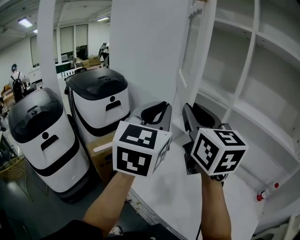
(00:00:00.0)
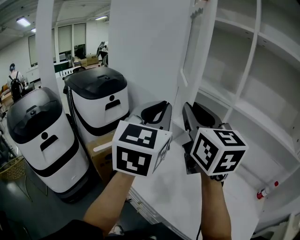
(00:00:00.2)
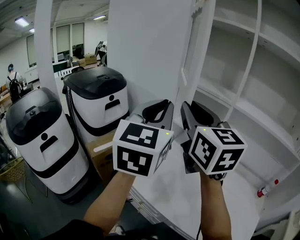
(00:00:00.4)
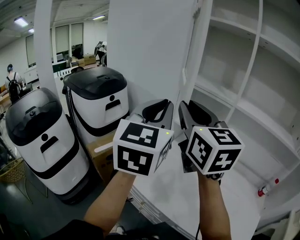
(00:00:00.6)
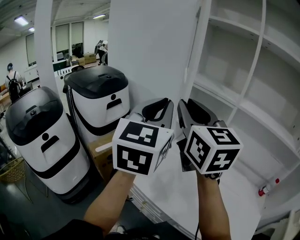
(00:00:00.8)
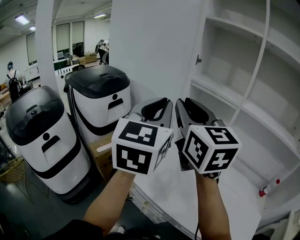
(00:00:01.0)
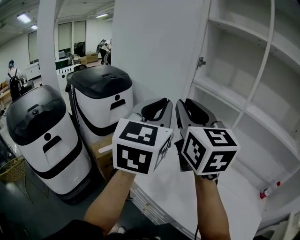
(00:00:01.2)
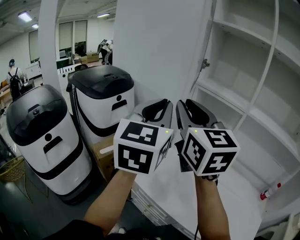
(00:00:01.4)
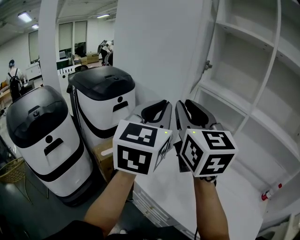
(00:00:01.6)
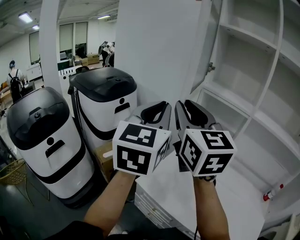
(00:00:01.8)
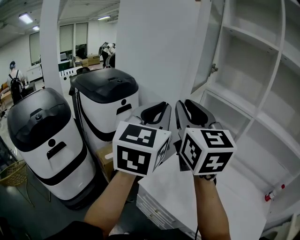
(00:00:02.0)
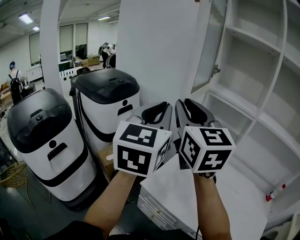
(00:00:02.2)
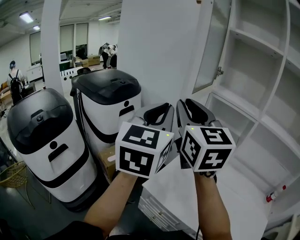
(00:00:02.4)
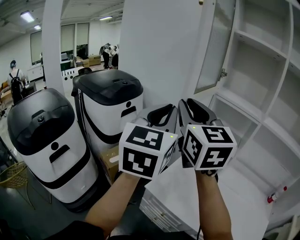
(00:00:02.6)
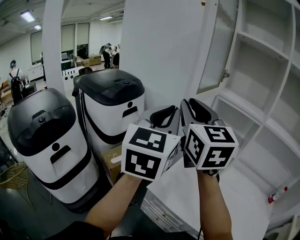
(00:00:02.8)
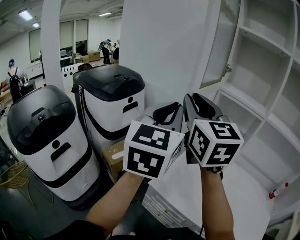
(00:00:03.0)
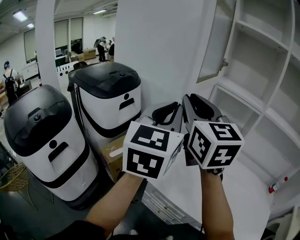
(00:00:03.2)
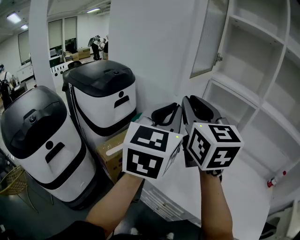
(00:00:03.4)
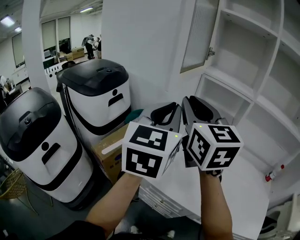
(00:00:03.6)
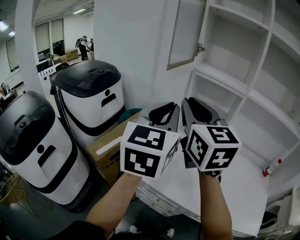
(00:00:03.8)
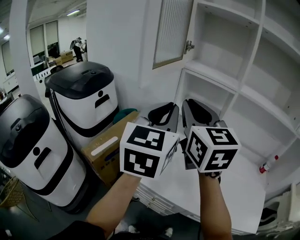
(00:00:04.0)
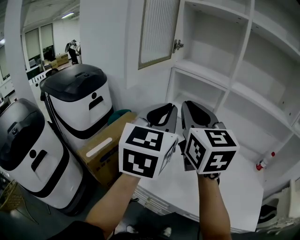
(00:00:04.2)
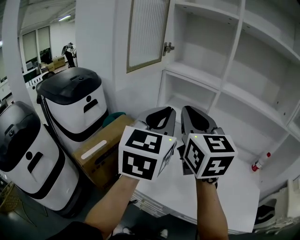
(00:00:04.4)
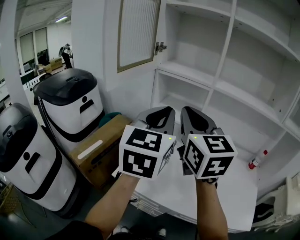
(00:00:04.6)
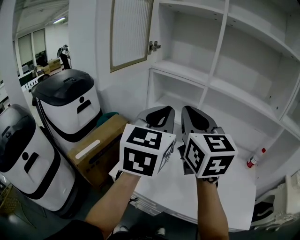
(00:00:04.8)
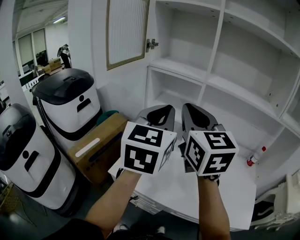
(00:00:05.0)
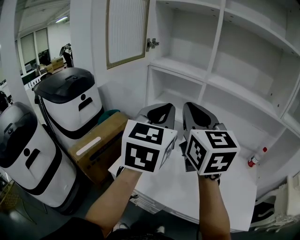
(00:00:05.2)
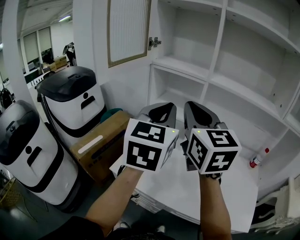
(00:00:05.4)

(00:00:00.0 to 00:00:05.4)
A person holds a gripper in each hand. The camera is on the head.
00:00:00.0 - 00:00:01.4: The grippers both shift to the left by about 10 cm.
00:00:01.4 - 00:00:02.8: The right gripper travels to the left and forward by approximately 10 cm. Meanwhile the left gripper is displaced to the left by approximately 10 cm.
00:00:02.8 - 00:00:04.0: Both grippers travel together to the right, some 15 cm.
00:00:04.0 - 00:00:05.4: Both grippers move to the right, approximately 15 cm.

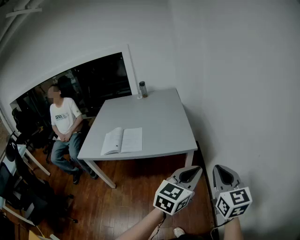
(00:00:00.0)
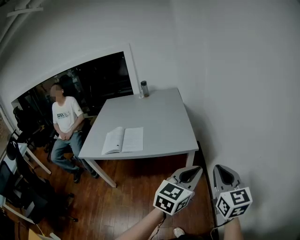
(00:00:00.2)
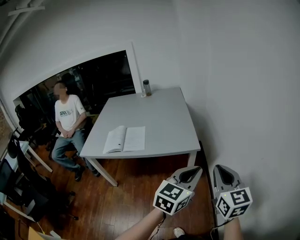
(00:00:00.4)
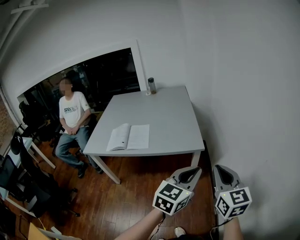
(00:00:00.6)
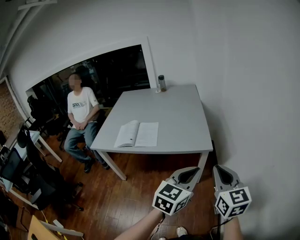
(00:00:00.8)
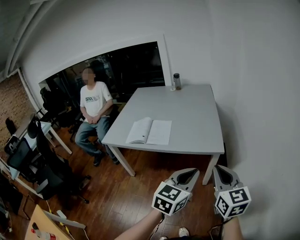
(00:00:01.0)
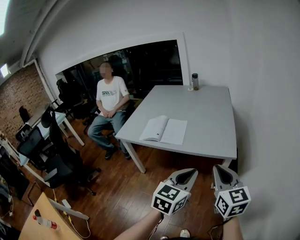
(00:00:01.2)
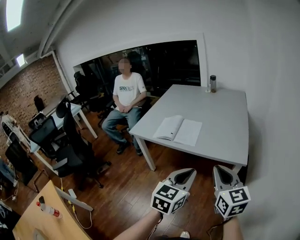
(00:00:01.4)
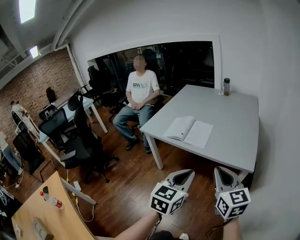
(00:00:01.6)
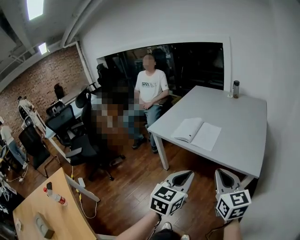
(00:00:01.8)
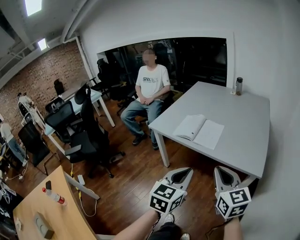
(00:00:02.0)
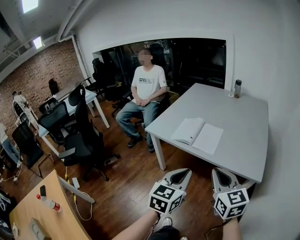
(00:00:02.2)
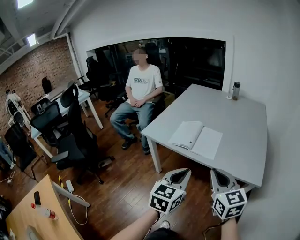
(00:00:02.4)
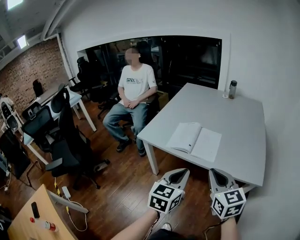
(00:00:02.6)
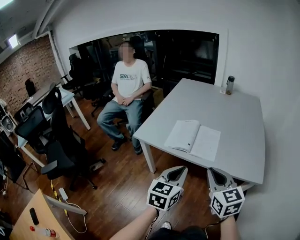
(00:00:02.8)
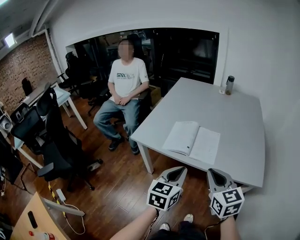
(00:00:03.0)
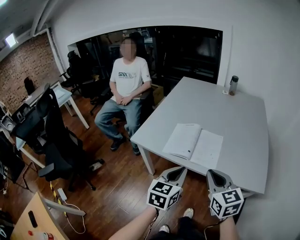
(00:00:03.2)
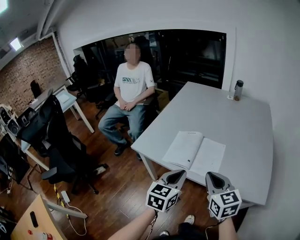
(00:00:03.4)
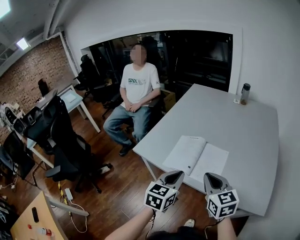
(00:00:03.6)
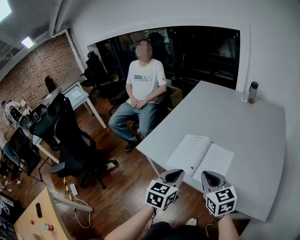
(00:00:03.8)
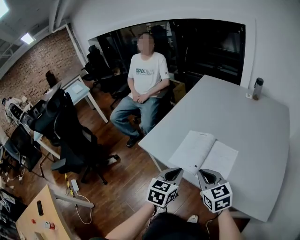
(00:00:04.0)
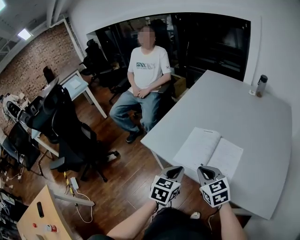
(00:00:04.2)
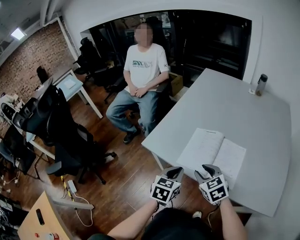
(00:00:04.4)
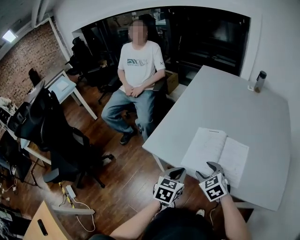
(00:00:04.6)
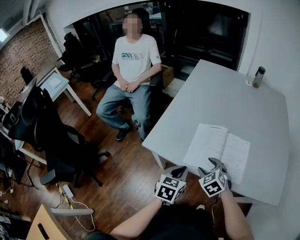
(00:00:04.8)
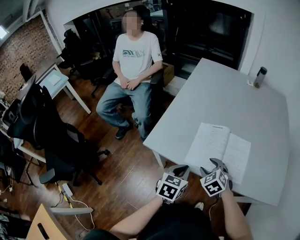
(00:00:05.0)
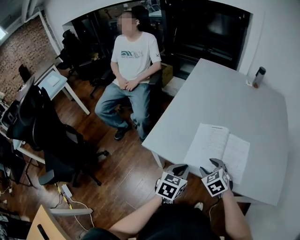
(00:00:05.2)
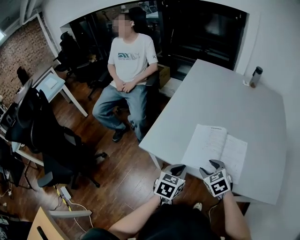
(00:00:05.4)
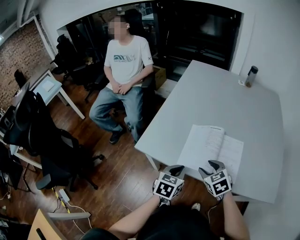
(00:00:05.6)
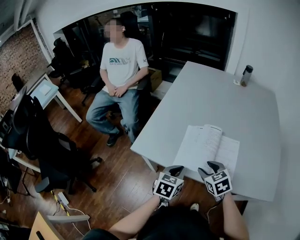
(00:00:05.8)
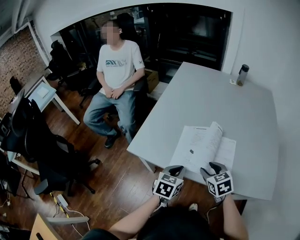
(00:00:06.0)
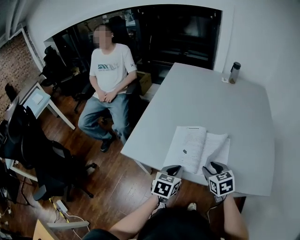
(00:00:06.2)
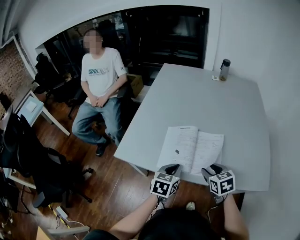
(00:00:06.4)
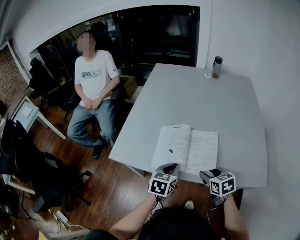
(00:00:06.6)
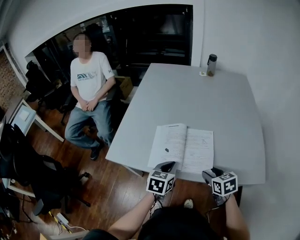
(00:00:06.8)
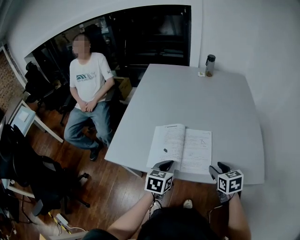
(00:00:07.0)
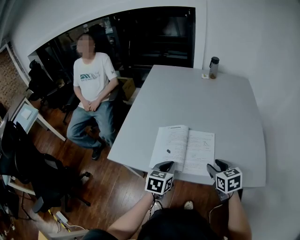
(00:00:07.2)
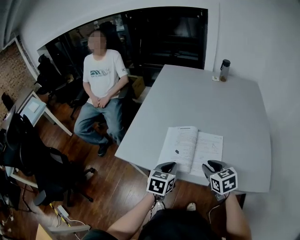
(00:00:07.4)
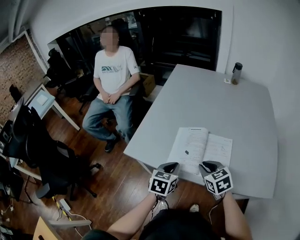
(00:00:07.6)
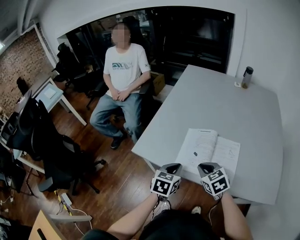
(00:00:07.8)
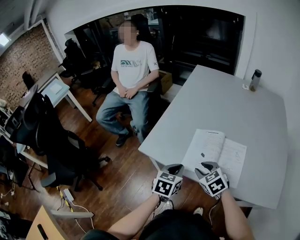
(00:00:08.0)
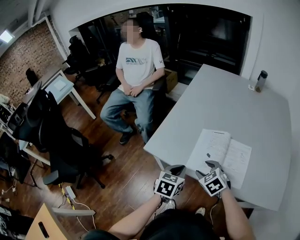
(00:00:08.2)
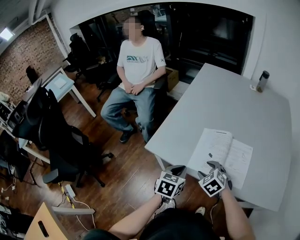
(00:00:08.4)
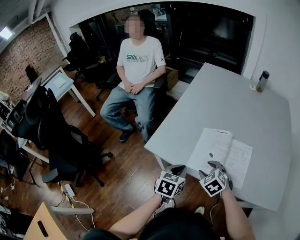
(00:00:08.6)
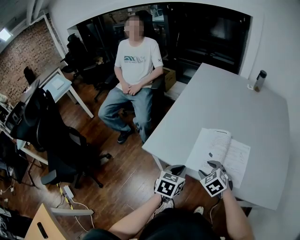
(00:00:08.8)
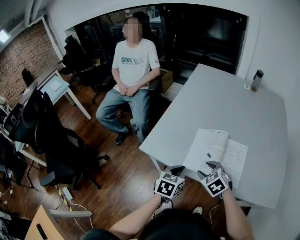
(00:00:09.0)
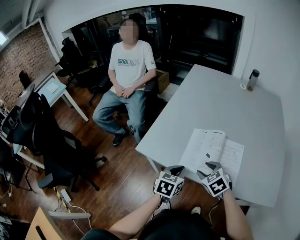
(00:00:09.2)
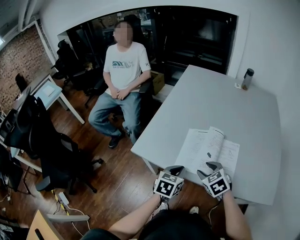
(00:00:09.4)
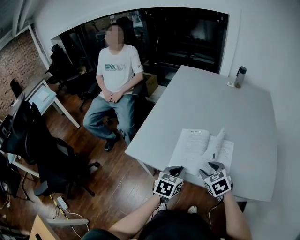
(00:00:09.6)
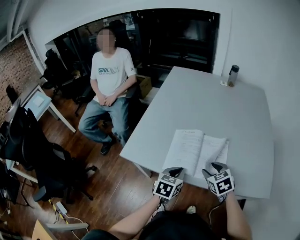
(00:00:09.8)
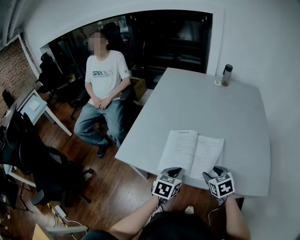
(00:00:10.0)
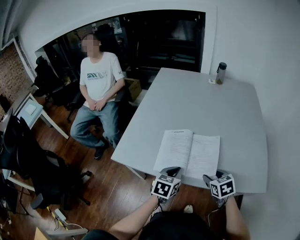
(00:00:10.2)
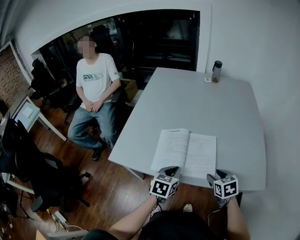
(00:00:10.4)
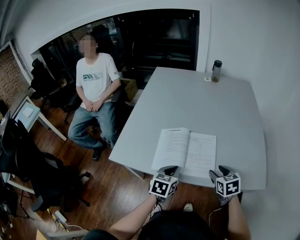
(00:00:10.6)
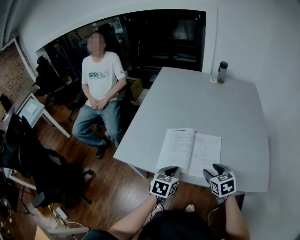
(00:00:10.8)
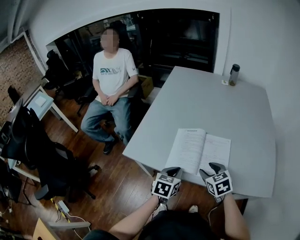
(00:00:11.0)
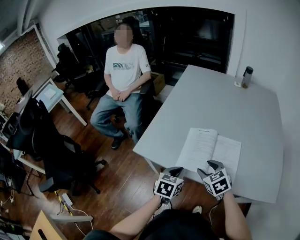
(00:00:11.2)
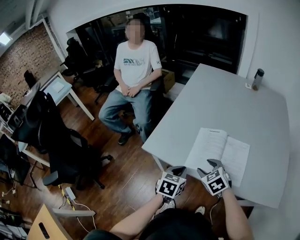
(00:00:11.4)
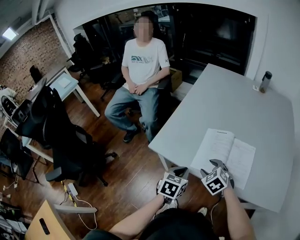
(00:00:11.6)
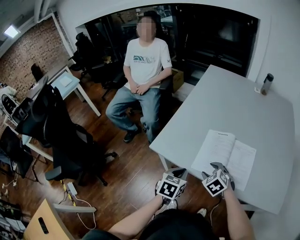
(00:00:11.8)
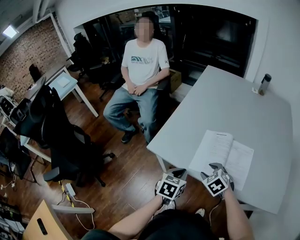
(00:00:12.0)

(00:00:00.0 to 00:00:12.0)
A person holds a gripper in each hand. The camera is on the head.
00:00:00.0 - 00:00:01.6: The left gripper ends up some 25 cm from where it was, and swivels about 40 degrees; the right gripper changes place by about 20 cm, and swivels approximately 40 degrees.
00:00:01.6 - 00:00:03.0: Both grippers move forward and to the left, some 25 cm.
00:00:03.0 - 00:00:04.4: The two grippers go roughly 25 cm forward, downward and to the left. The right gripper rotates about 30 degrees, and opens.
00:00:04.4 - 00:00:06.0: The left gripper moves approximately 5 cm; the right gripper travels to the right by approximately 5 cm.
00:00:06.0 - 00:00:07.6: The right gripper goes to the right and returns, roughly 15 cm each way, and closes.
00:00:07.6 - 00:00:09.0: The left gripper goes approximately 5 cm to the left. Meanwhile the right gripper is displaced to the left by some 10 cm, swivels some 20 degrees, and opens its fingers.
00:00:09.0 - 00:00:10.4: The left gripper shifts approximately 15 cm to the right, while the right gripper goes some 20 cm to the right, and turns by approximately 40 degrees.
00:00:10.4 - 00:00:12.0: The left gripper travels to the left by approximately 15 cm; the right gripper heads to the left, covering roughly 25 cm, and rotates around the line of its fingers by approximately 40 degrees, counterclockwise from behind.

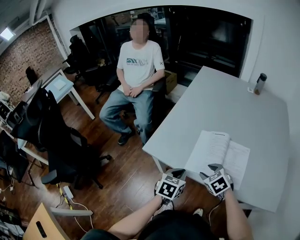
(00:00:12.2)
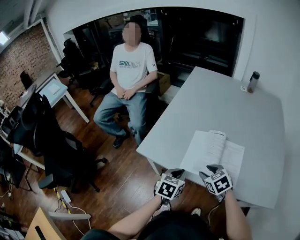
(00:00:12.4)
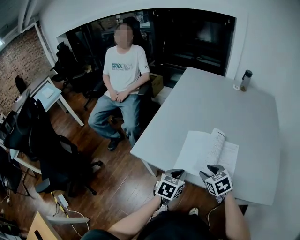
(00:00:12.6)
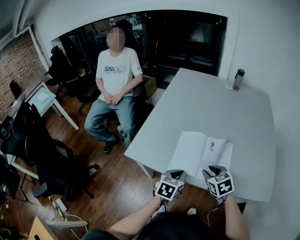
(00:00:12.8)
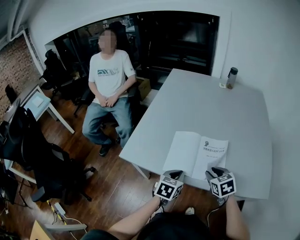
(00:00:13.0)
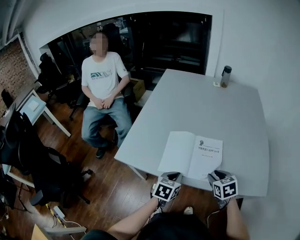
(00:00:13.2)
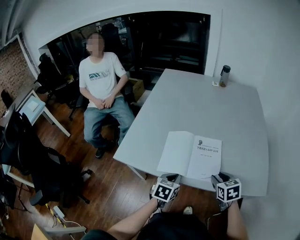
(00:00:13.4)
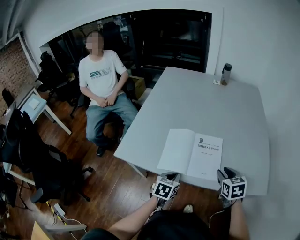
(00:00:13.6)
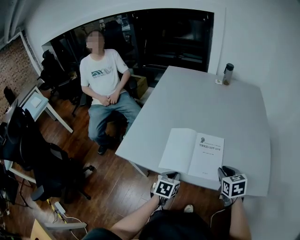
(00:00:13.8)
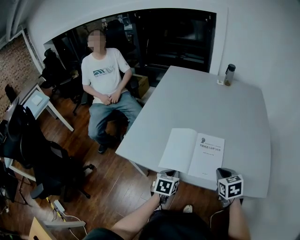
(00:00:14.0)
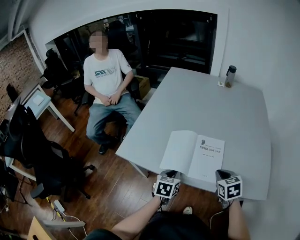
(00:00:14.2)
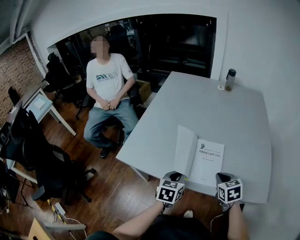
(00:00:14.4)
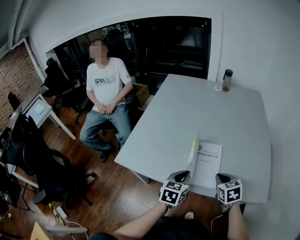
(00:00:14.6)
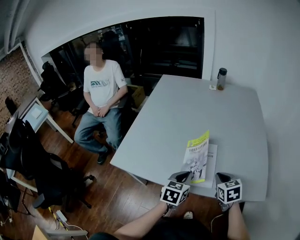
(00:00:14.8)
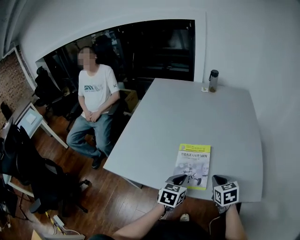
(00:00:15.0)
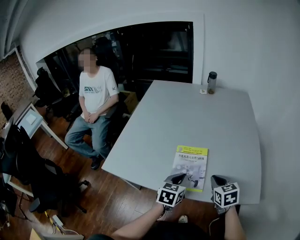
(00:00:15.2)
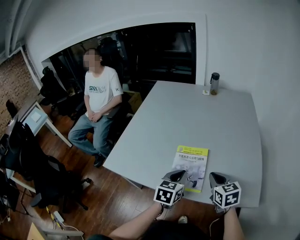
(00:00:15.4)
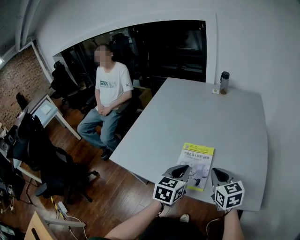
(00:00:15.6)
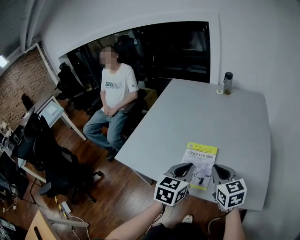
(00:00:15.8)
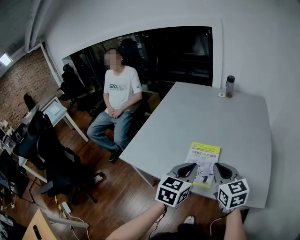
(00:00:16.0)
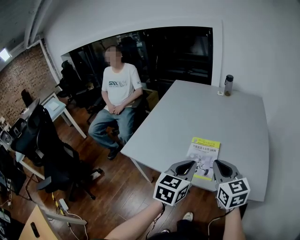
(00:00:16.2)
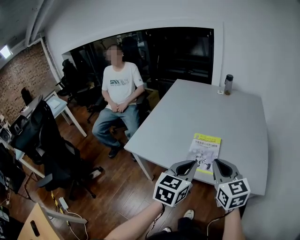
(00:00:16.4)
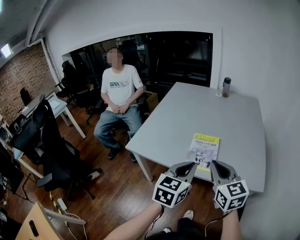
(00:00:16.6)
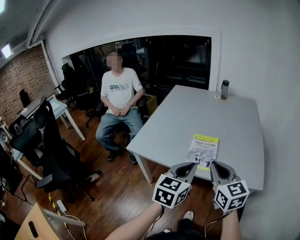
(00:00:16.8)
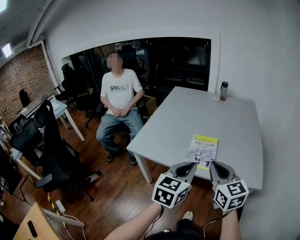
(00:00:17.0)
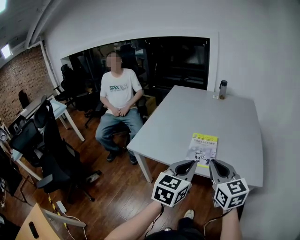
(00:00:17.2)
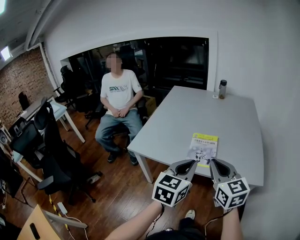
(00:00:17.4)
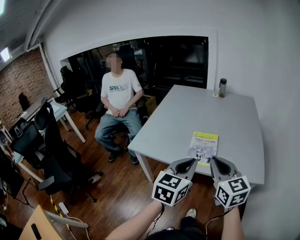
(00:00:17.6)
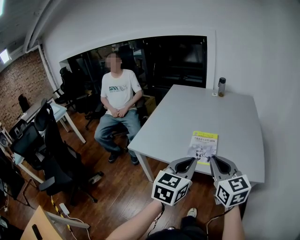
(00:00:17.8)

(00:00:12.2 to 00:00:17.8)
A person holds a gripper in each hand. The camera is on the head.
00:00:12.2 - 00:00:13.6: The left gripper heads to the right, covering some 10 cm; the right gripper goes some 25 cm to the right, and rotates about 40 degrees.
00:00:13.6 - 00:00:15.0: The right gripper closes up. The left gripper moves to the right and upward, approximately 10 cm.
00:00:15.0 - 00:00:16.4: The left gripper is displaced upward and backward by roughly 20 cm; the right gripper heads upward, backward and to the left, covering approximately 20 cm, and rotates some 30 degrees.
00:00:16.4 - 00:00:17.8: Both grippers travel together backward, approximately 5 cm.
